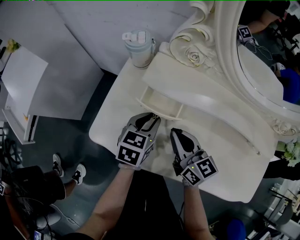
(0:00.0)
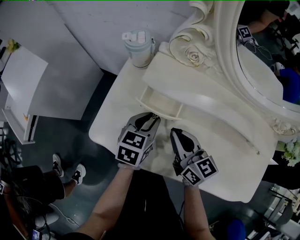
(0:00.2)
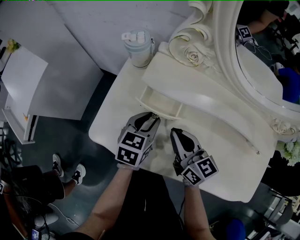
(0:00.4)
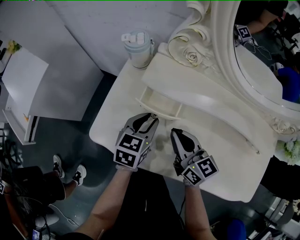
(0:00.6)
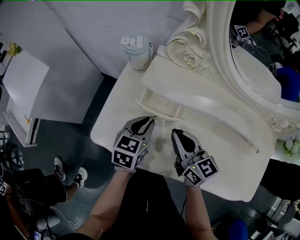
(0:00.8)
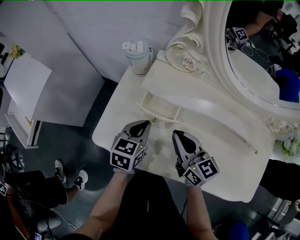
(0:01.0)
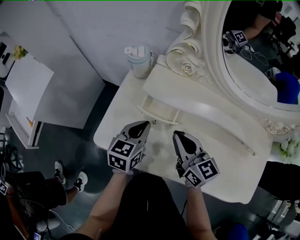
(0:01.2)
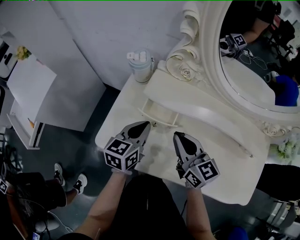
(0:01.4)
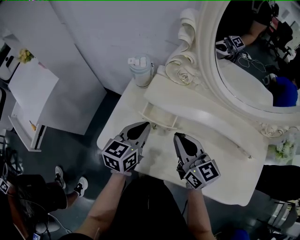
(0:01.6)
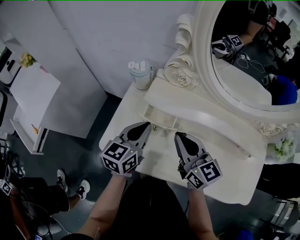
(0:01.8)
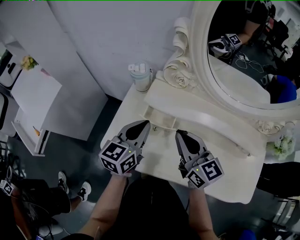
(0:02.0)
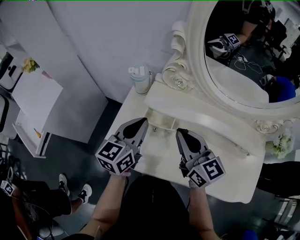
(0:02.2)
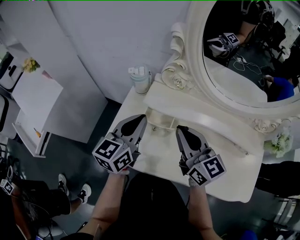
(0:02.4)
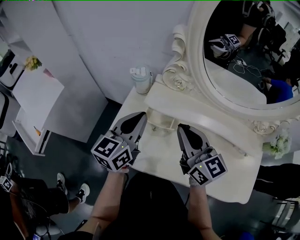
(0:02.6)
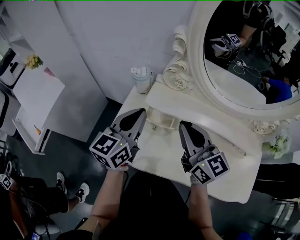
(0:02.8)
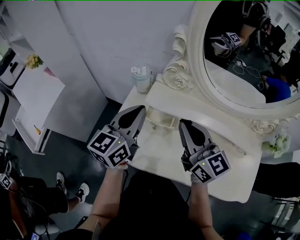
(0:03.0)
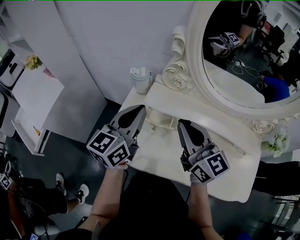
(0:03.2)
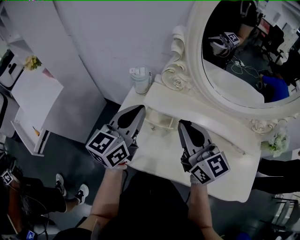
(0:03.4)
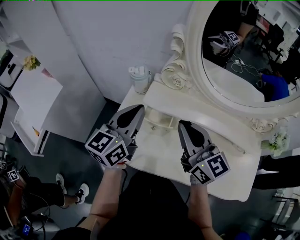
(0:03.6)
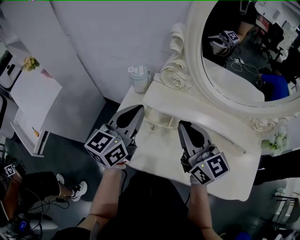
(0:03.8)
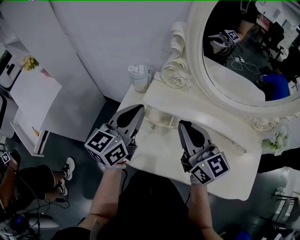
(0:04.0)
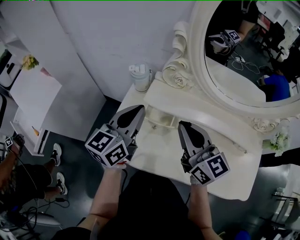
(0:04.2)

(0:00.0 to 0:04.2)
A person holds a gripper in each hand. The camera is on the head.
0:00.0 - 0:01.4: The grippers both shift upward by approximately 5 cm. The left gripper closes its fingers.
0:01.4 - 0:02.8: Both grippers travel together upward, about 15 cm. The left gripper rotates approximately 20 degrees.
0:02.8 - 0:04.2: The grippers move only a little.

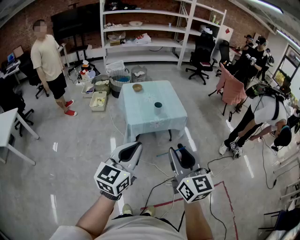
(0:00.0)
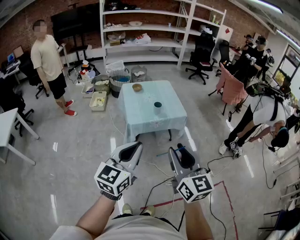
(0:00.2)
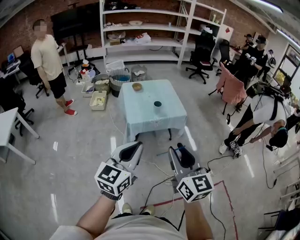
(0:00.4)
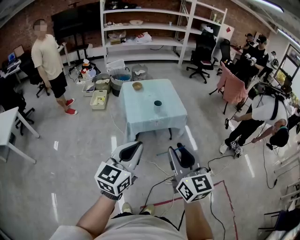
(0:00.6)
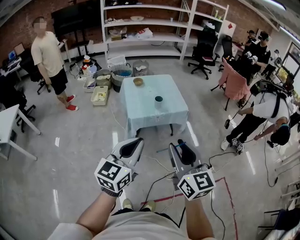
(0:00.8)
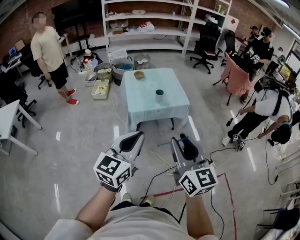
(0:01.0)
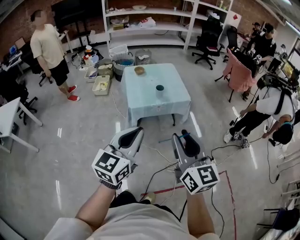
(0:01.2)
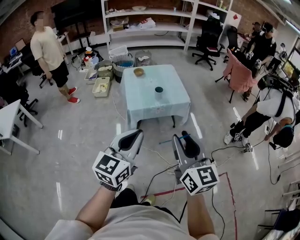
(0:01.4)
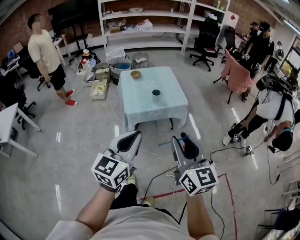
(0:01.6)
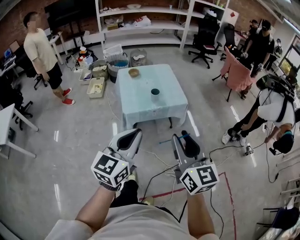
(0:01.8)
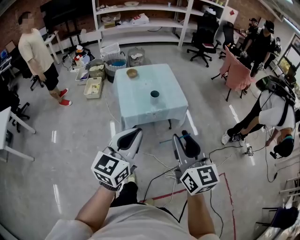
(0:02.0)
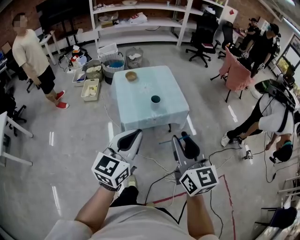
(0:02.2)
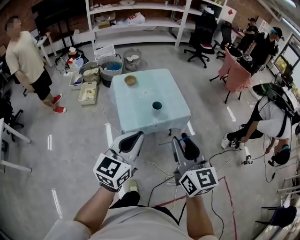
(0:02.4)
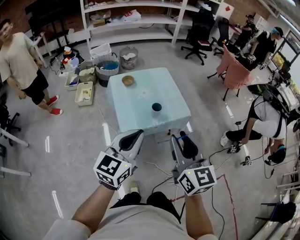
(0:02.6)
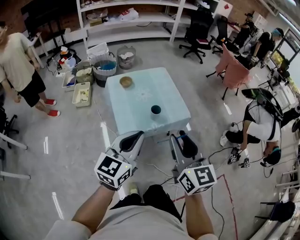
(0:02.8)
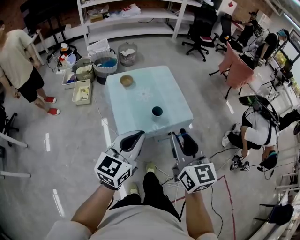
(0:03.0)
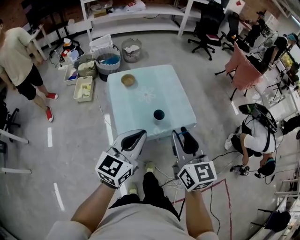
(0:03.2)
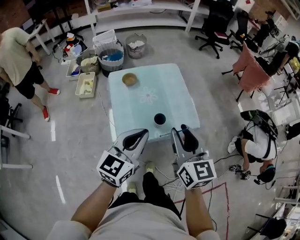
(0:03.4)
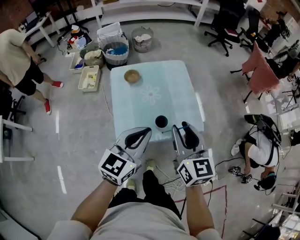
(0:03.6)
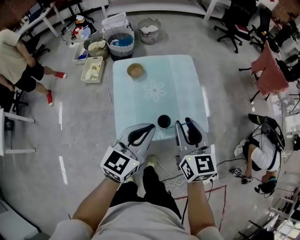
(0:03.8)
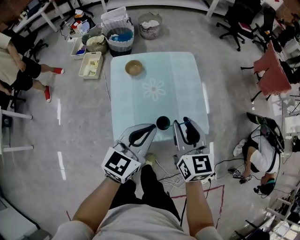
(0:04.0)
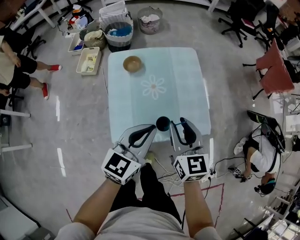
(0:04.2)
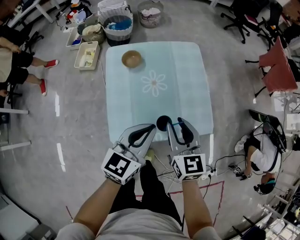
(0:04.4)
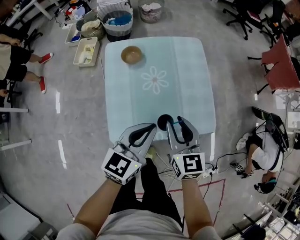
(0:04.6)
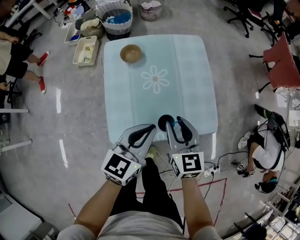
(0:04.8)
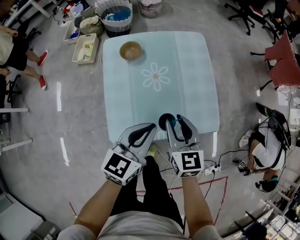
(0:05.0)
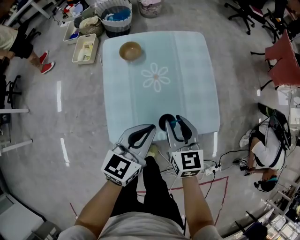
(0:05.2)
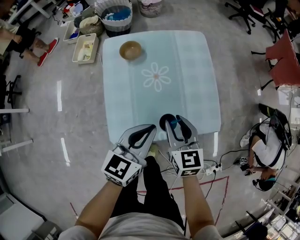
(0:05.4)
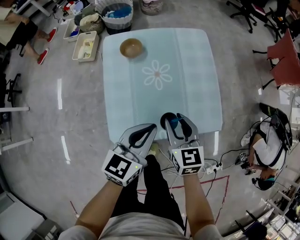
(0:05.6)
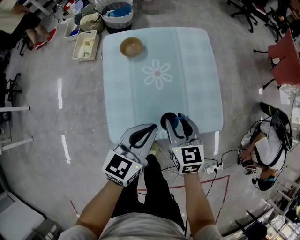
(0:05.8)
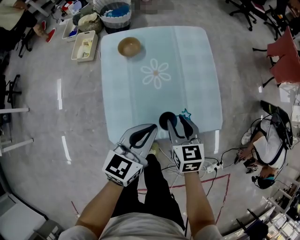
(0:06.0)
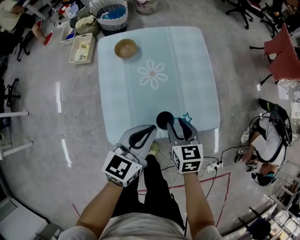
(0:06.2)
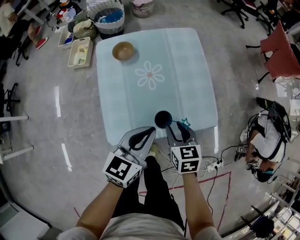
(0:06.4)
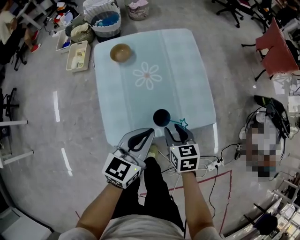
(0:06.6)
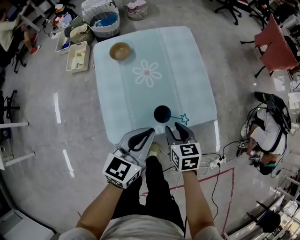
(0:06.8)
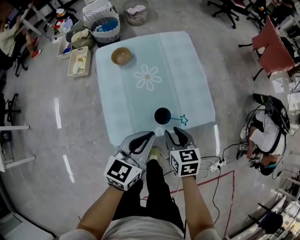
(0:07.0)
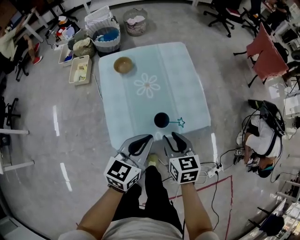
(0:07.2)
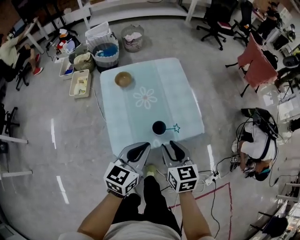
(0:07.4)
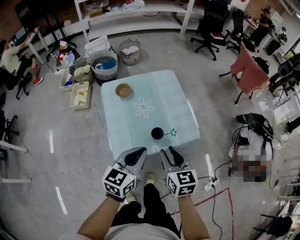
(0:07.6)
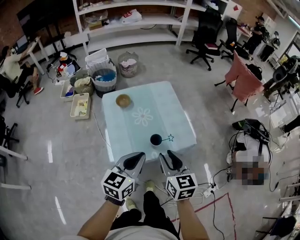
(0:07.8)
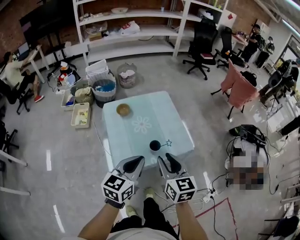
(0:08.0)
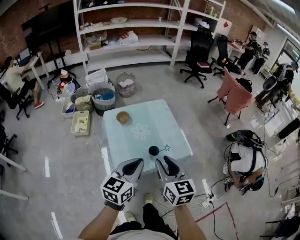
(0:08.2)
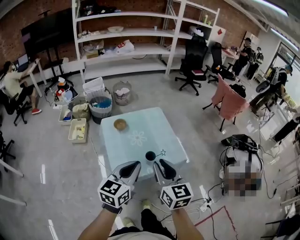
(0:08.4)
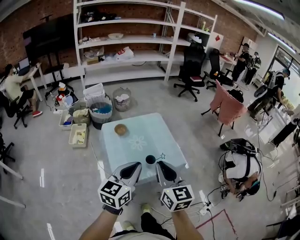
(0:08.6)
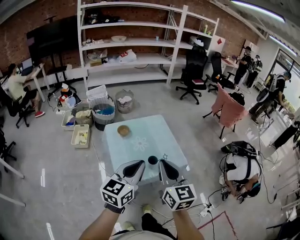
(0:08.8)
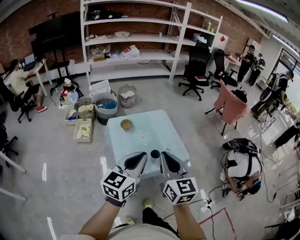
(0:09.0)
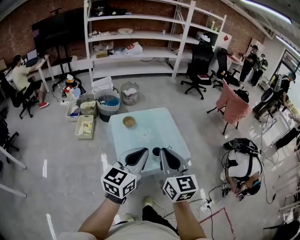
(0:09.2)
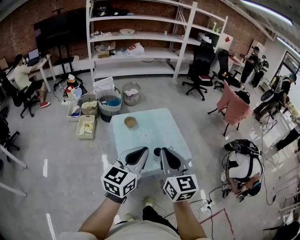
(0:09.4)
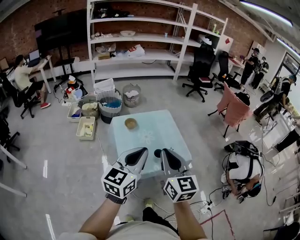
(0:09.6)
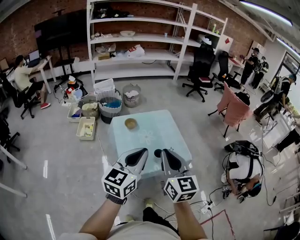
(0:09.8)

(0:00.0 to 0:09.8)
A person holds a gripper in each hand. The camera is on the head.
0:00.0 - 0:01.4: The left gripper shifts by approximately 5 cm. The right gripper travels to the right by roughly 5 cm.
0:01.4 - 0:02.8: Both grippers travel together forward, some 30 cm.
0:02.8 - 0:04.2: Both grippers move forward and downward, roughly 35 cm.
0:04.2 - 0:05.6: The grippers both shift downward by some 10 cm.
0:05.6 - 0:07.0: Both grippers travel together backward, some 5 cm.
0:07.0 - 0:08.4: The right gripper heads upward, covering roughly 30 cm, and points its fingers roughly 30 degrees further upward. The left gripper heads upward and backward, covering some 25 cm.
0:08.4 - 0:09.8: The grippers both shift upward by about 10 cm. The right gripper closes up.

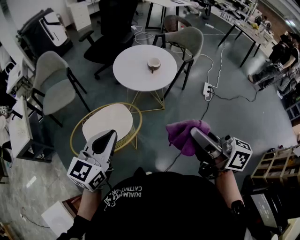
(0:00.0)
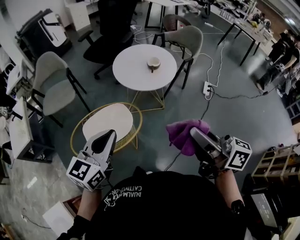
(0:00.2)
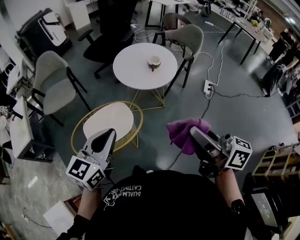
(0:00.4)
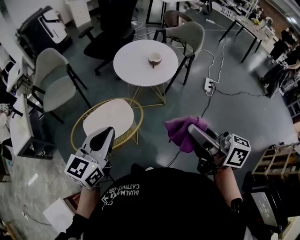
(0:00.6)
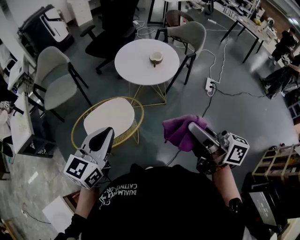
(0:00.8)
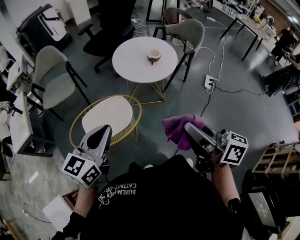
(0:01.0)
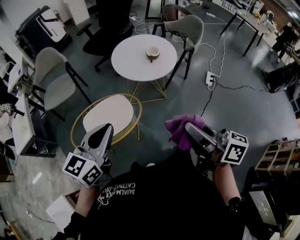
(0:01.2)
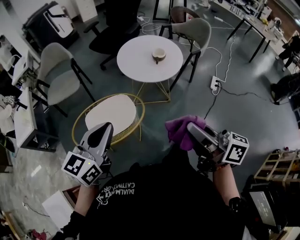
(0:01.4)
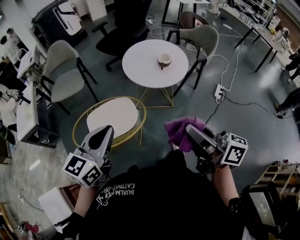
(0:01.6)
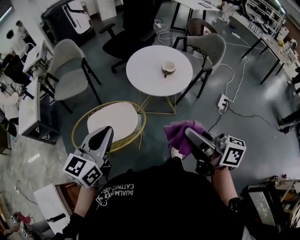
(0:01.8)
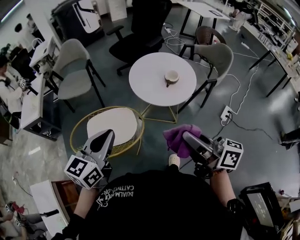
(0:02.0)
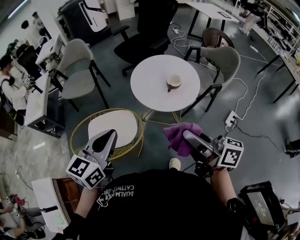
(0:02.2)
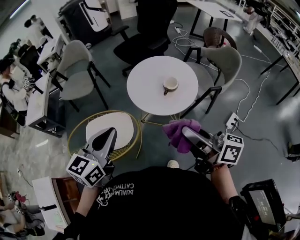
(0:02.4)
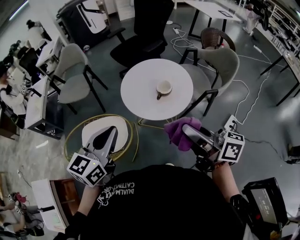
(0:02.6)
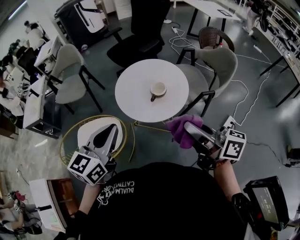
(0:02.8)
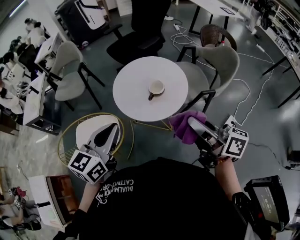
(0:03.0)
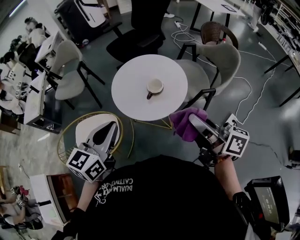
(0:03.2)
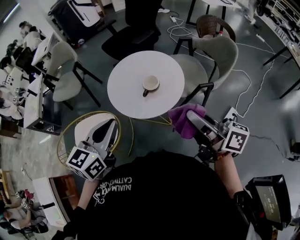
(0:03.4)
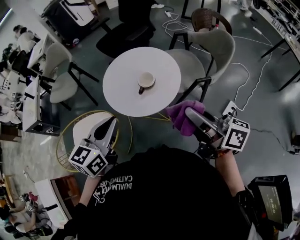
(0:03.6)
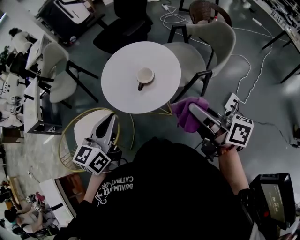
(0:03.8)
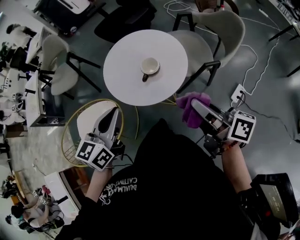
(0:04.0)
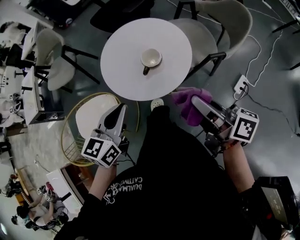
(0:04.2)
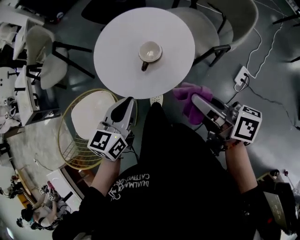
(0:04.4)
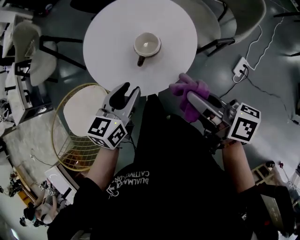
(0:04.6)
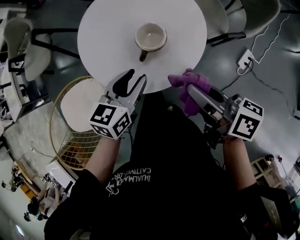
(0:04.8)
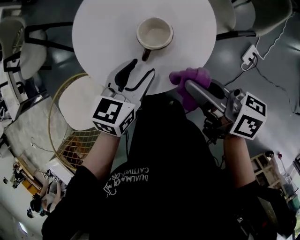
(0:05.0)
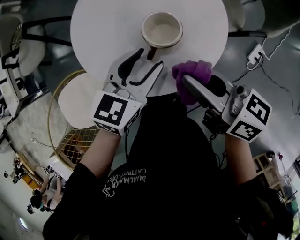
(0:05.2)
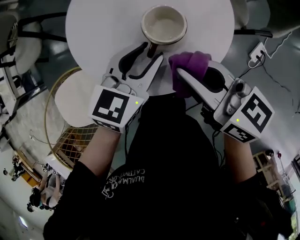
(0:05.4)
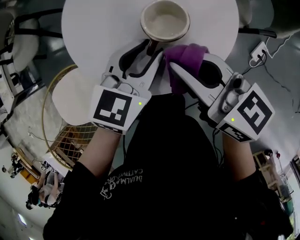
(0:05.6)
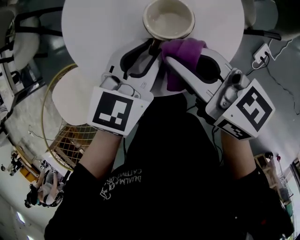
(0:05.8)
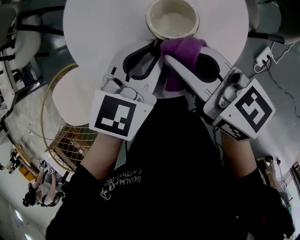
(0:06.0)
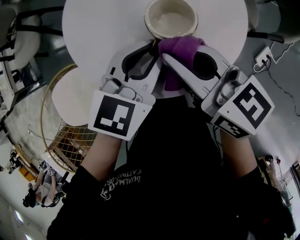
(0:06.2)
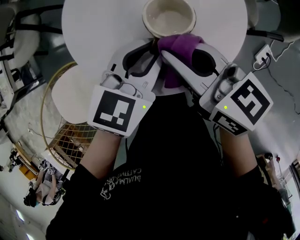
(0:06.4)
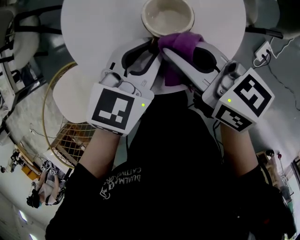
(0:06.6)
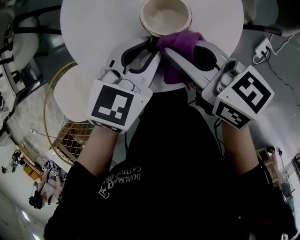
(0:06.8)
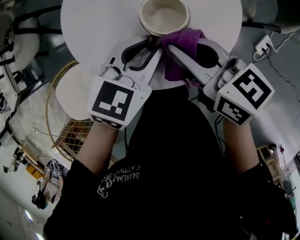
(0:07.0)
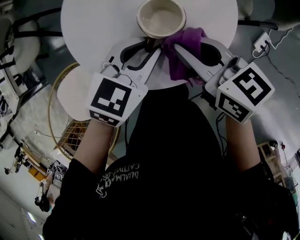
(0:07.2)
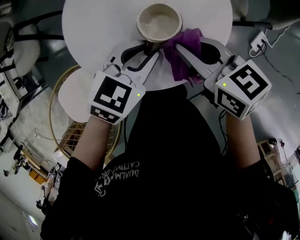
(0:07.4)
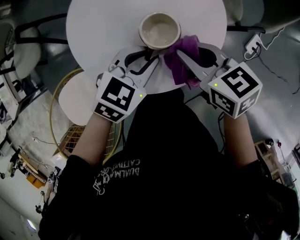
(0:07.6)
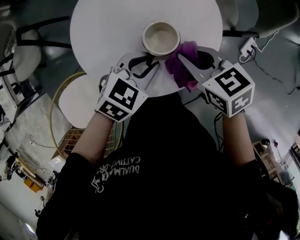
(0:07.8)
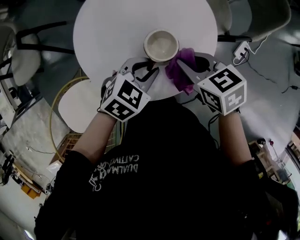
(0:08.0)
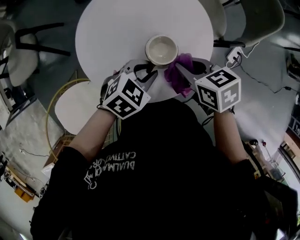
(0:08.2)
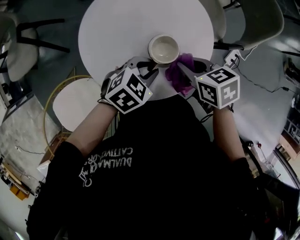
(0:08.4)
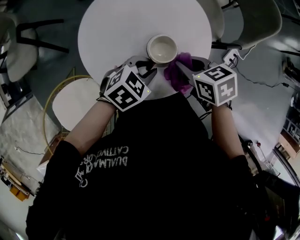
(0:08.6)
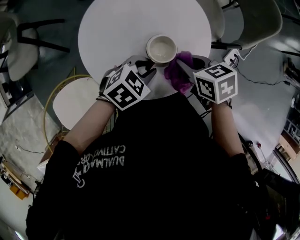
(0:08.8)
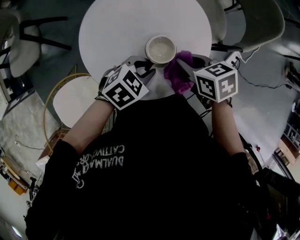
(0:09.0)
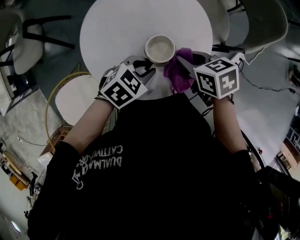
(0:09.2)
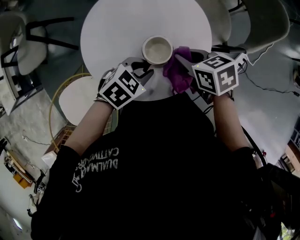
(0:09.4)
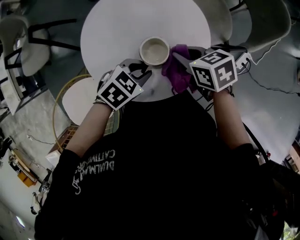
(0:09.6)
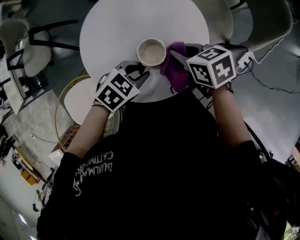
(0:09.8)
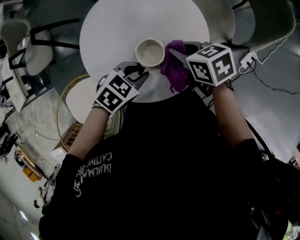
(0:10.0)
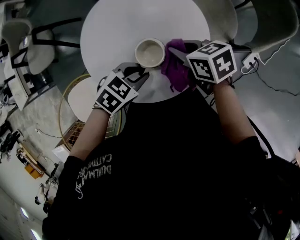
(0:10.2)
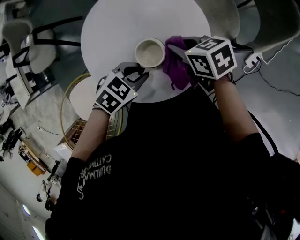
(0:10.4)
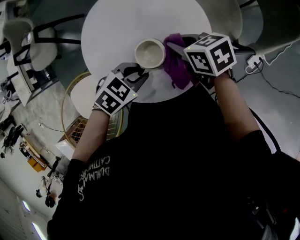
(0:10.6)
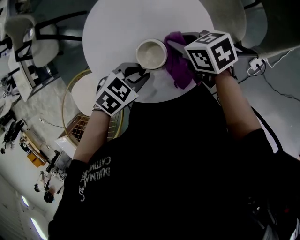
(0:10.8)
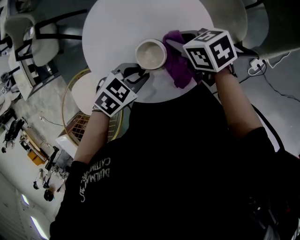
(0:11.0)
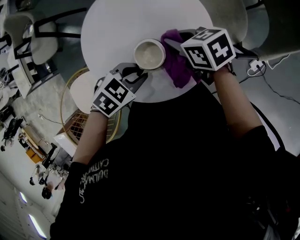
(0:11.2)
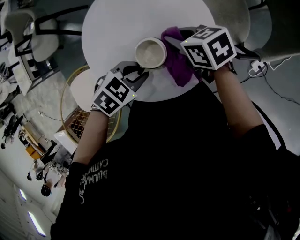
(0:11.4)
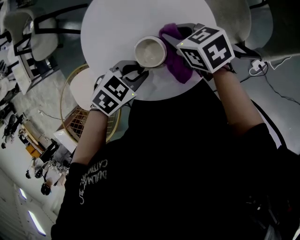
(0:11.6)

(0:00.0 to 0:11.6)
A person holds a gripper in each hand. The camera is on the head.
0:00.0 - 0:01.4: The right gripper ends up about 5 cm from where it was.
0:01.4 - 0:02.8: Both grippers travel together to the right and forward, roughly 30 cm. The right gripper rotates approximately 20 degrees.
0:02.8 - 0:04.4: The two grippers go about 20 cm downward, forward and to the right. The right gripper turns by about 20 degrees.
0:04.4 - 0:05.8: The right gripper shifts about 20 cm forward, downward and to the left, and rotates roughly 30 degrees. Meanwhile the left gripper travels forward, downward and to the right by some 20 cm, and opens up.
0:05.8 - 0:07.2: The grippers stay close to where they were, moving slightly.
0:07.2 - 0:08.8: The left gripper changes its angle by about 20 degrees. The right gripper turns by roughly 30 degrees.
0:08.8 - 0:10.2: The right gripper moves about 5 cm.
0:10.2 - 0:11.6: The right gripper ends up about 5 cm from where it was.
